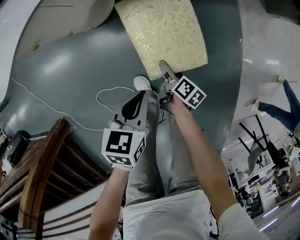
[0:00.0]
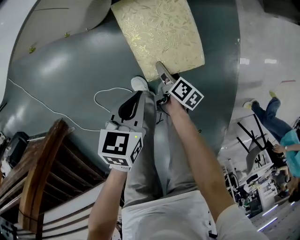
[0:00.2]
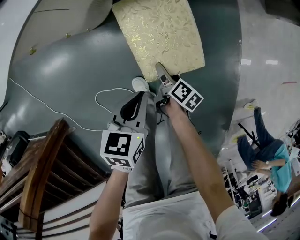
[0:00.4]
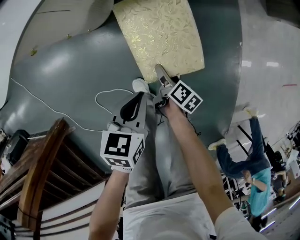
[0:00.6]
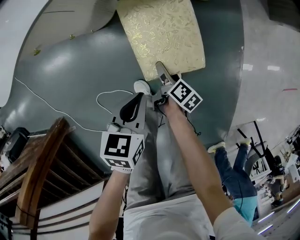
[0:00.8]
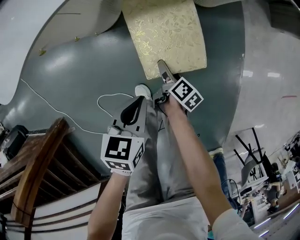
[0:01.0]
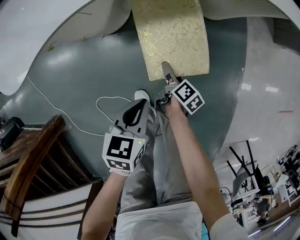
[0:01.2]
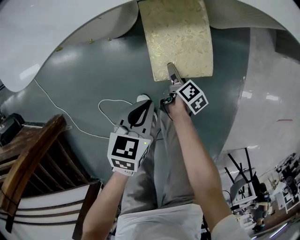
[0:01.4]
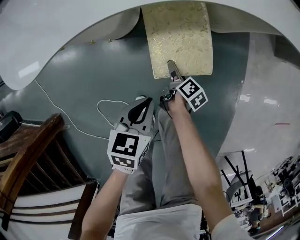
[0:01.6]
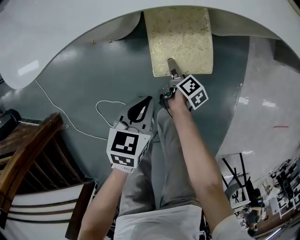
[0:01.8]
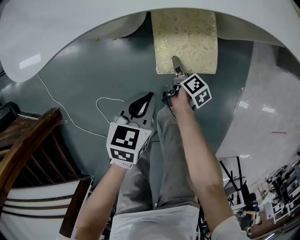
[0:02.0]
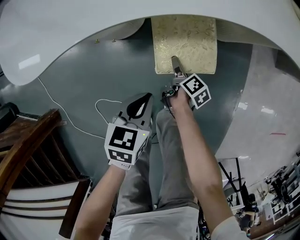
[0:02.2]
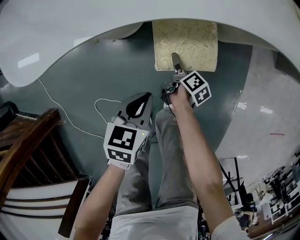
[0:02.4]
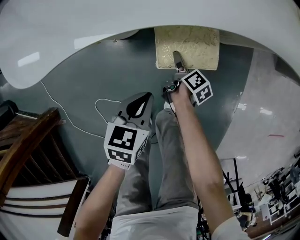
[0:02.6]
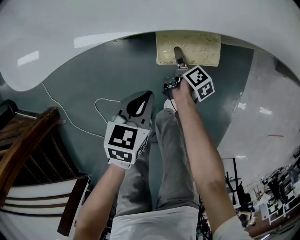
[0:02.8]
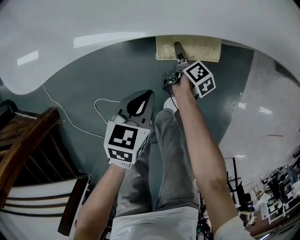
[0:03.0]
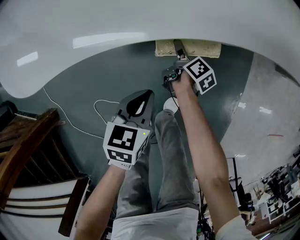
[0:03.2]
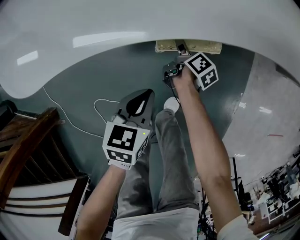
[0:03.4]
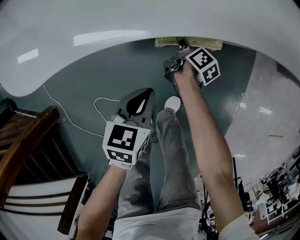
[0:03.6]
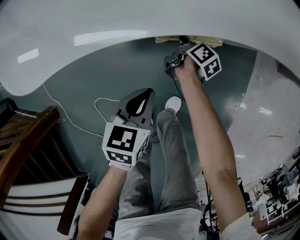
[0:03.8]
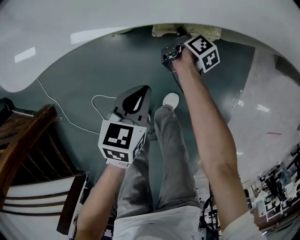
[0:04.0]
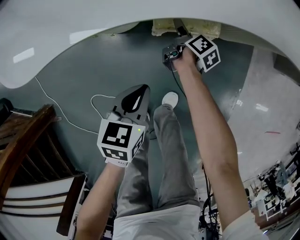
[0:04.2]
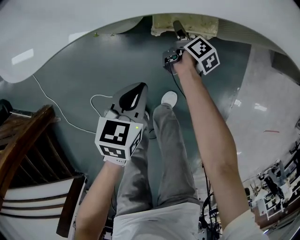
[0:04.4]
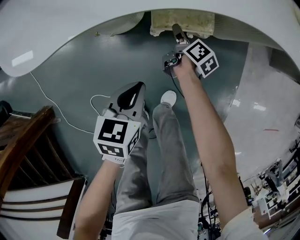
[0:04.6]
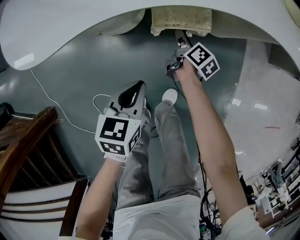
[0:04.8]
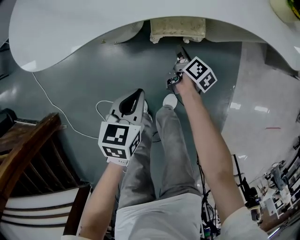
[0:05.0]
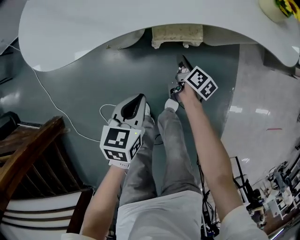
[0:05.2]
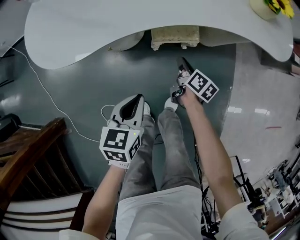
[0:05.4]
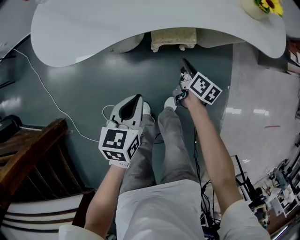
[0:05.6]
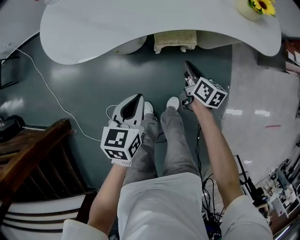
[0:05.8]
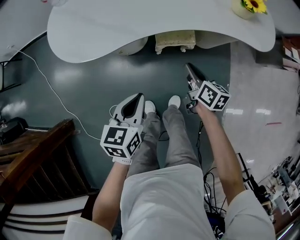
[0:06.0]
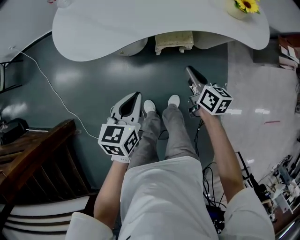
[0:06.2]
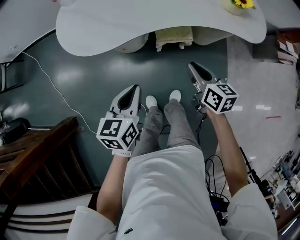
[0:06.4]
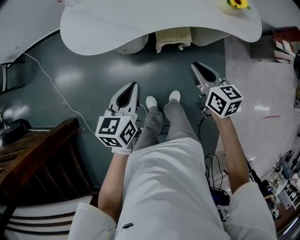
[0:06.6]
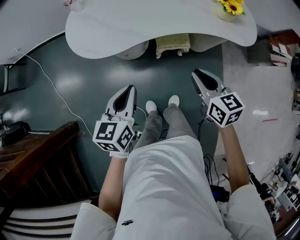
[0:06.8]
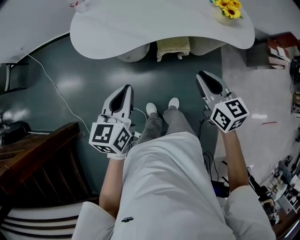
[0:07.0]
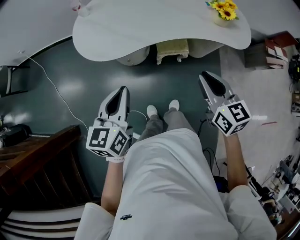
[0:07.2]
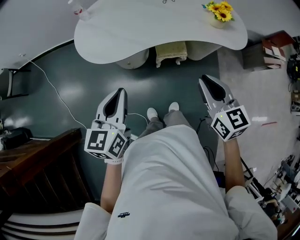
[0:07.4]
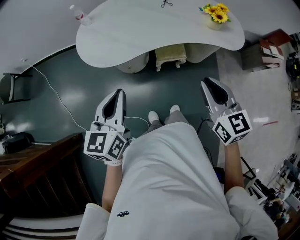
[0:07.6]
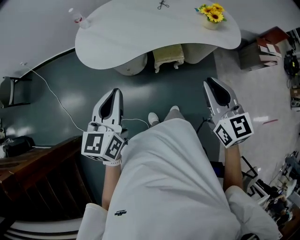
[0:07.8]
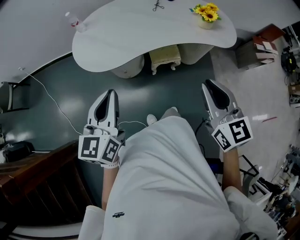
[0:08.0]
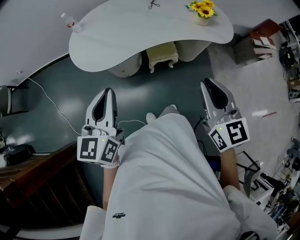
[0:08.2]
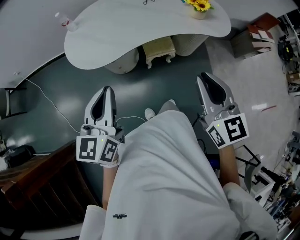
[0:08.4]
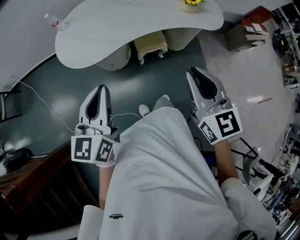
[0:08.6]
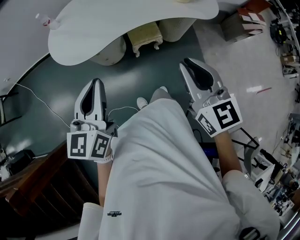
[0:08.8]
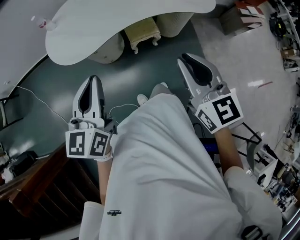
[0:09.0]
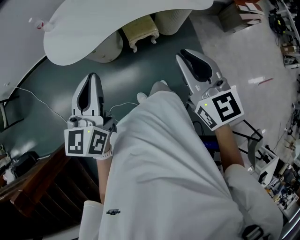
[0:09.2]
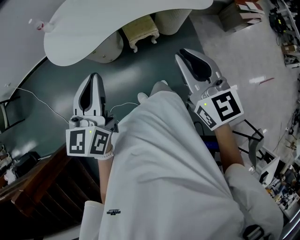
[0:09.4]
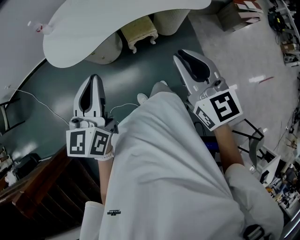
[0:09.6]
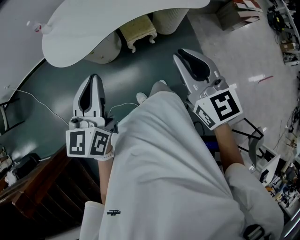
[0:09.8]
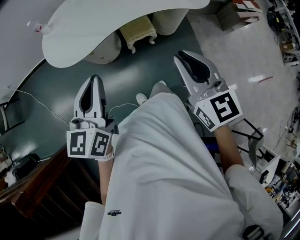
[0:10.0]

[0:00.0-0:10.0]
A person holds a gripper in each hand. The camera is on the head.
0:00.0 to 0:01.4: The right gripper is displaced forward by about 10 cm; the left gripper goes some 5 cm forward.
0:01.4 to 0:02.8: The right gripper shifts some 10 cm forward, while the left gripper goes about 5 cm forward.
0:02.8 to 0:04.2: The right gripper goes approximately 10 cm forward.
0:04.2 to 0:05.8: The right gripper goes about 30 cm upward and backward, swivels roughly 30 degrees, and closes, while the left gripper moves upward, roughly 20 cm.
0:05.8 to 0:07.2: Both grippers move upward, about 30 cm. The right gripper swivels some 40 degrees.
0:07.2 to 0:08.6: The right gripper shifts about 10 cm upward and backward; the left gripper heads upward, covering approximately 10 cm.
0:08.6 to 0:10.0: The left gripper is displaced to the right by roughly 5 cm.

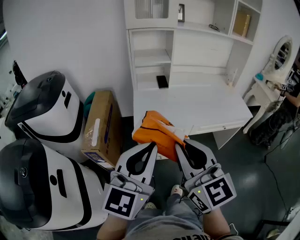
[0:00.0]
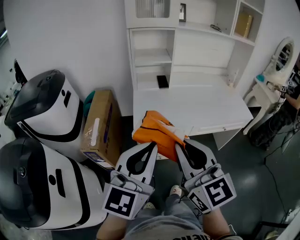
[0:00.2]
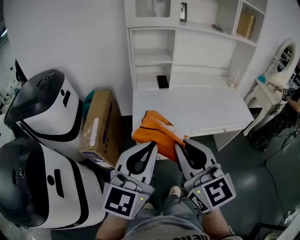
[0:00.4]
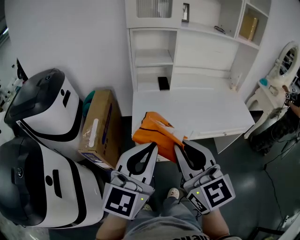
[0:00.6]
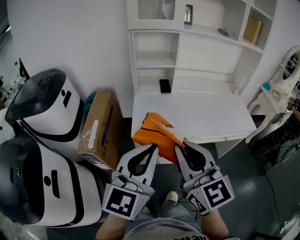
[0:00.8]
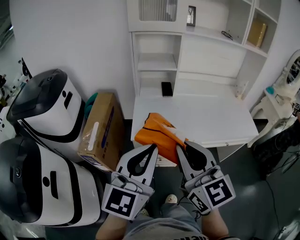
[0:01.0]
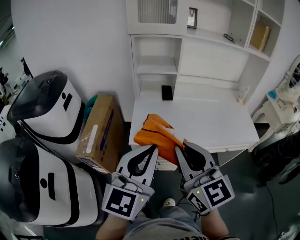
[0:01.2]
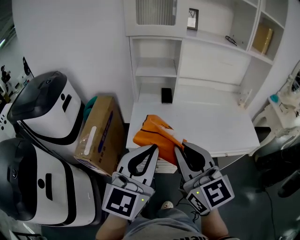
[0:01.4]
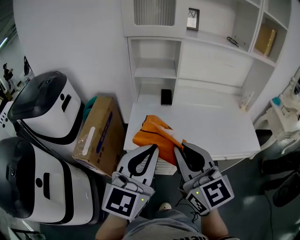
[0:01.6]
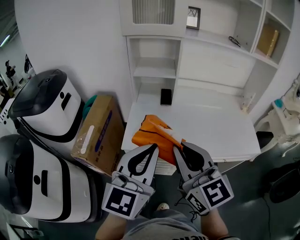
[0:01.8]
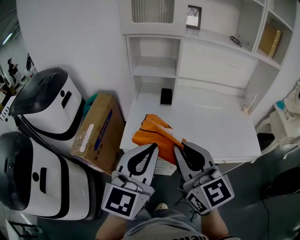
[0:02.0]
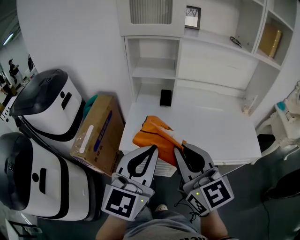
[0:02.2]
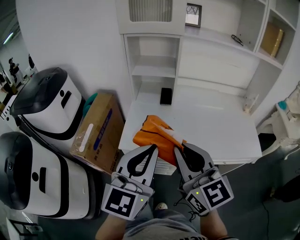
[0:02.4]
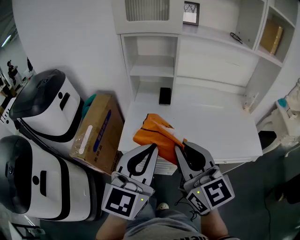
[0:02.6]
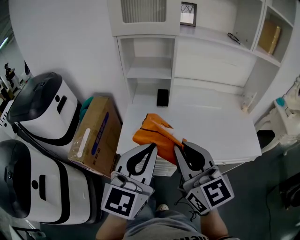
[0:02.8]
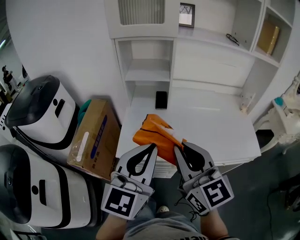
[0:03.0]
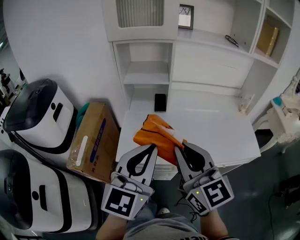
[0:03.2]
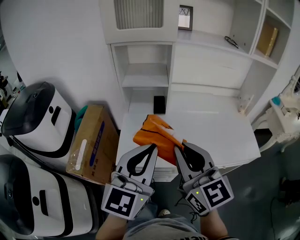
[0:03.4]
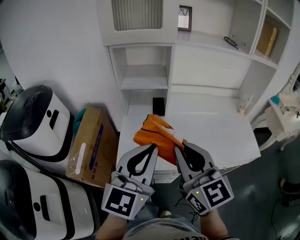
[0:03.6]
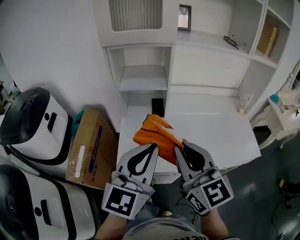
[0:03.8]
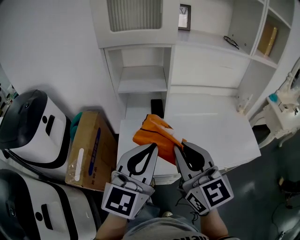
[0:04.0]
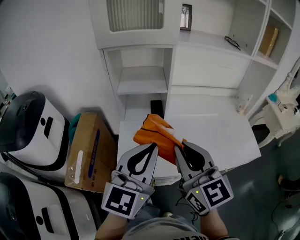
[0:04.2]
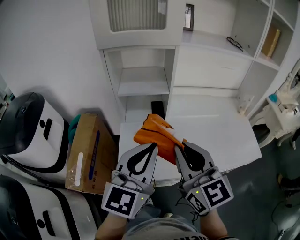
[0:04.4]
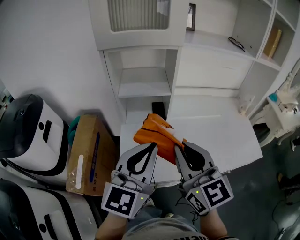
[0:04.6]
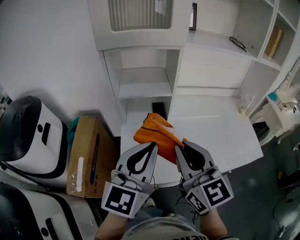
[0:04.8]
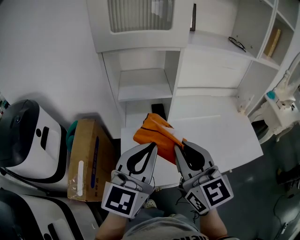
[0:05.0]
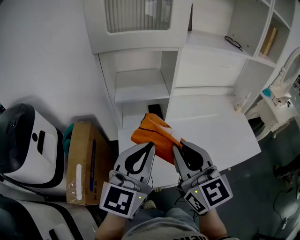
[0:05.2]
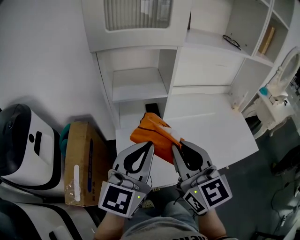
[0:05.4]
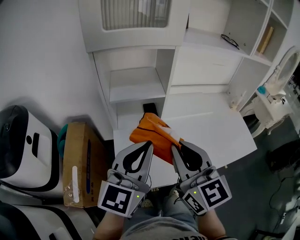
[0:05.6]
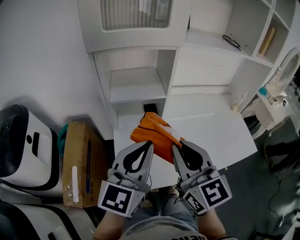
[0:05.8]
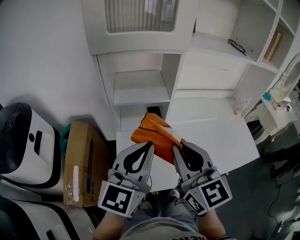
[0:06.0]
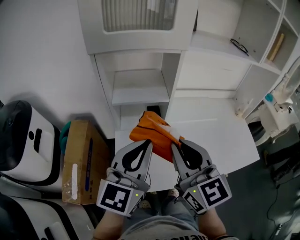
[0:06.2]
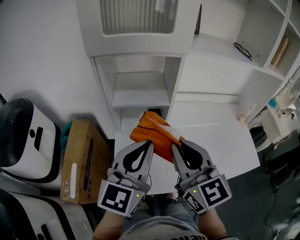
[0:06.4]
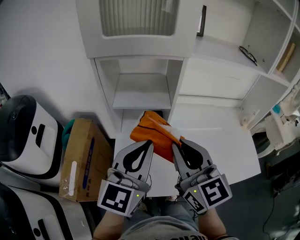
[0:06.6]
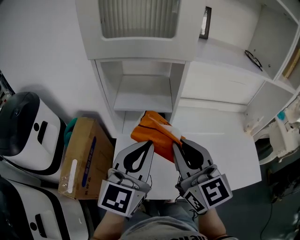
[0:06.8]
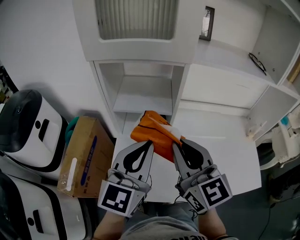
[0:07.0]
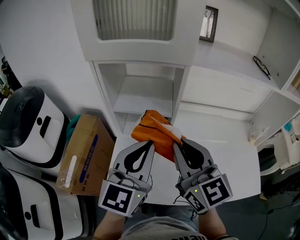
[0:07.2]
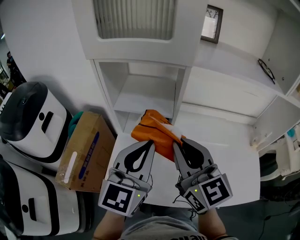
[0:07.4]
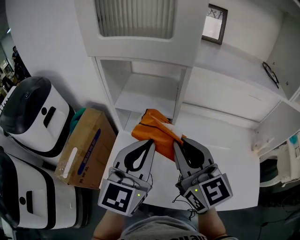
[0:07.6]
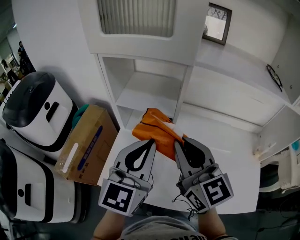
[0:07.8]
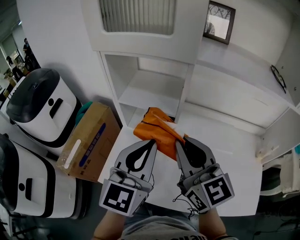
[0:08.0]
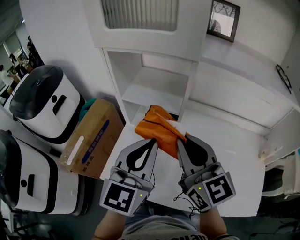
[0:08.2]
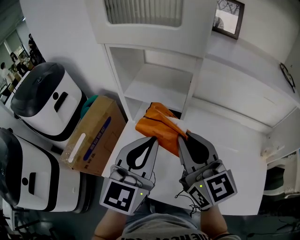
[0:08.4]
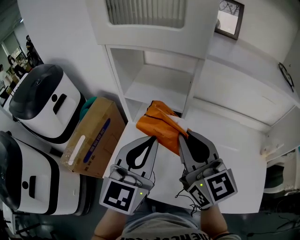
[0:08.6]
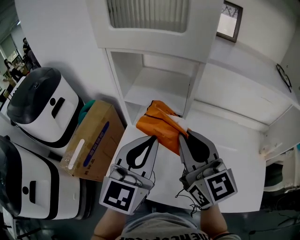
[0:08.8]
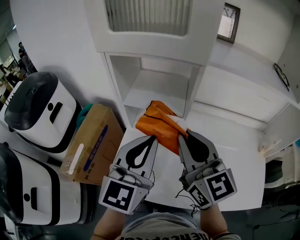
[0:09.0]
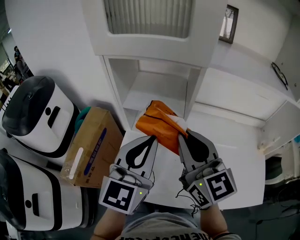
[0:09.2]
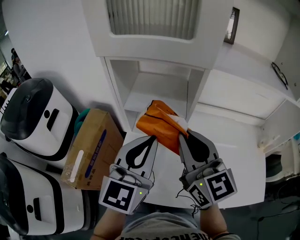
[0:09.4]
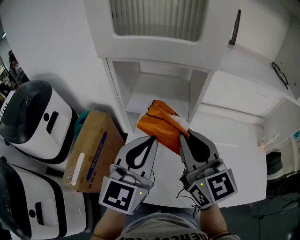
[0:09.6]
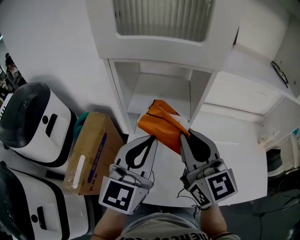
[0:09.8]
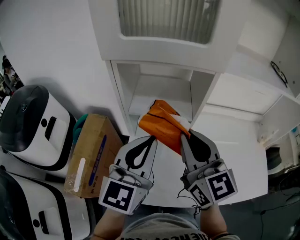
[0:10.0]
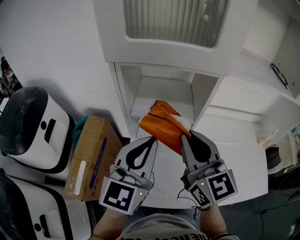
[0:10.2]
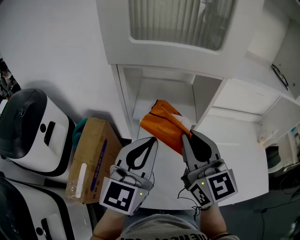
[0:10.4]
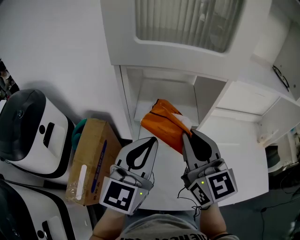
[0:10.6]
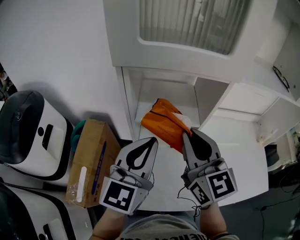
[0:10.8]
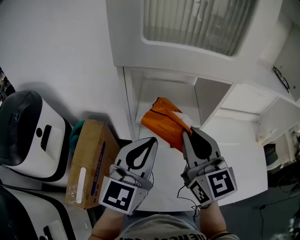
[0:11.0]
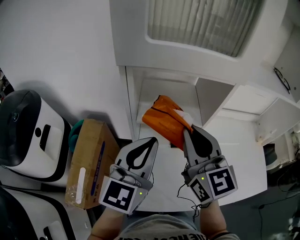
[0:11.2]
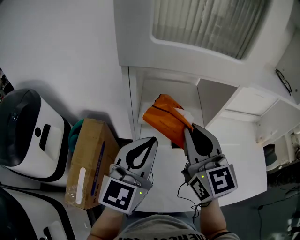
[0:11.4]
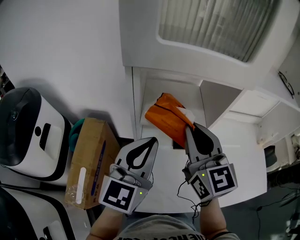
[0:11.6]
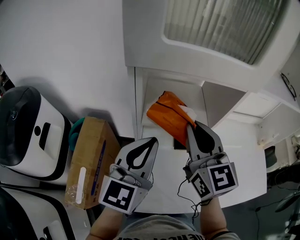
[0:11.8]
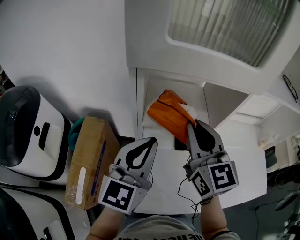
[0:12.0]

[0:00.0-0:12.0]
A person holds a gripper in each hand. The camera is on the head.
0:00.0 to 0:01.6: The grippers both shift forward and to the right by about 20 cm.
0:01.6 to 0:03.0: Both grippers travel together forward, approximately 5 cm.
0:03.0 to 0:04.4: Both grippers move forward, about 10 cm.
0:04.4 to 0:06.0: Both grippers travel together forward, approximately 5 cm.
0:06.0 to 0:07.6: The grippers both shift forward and to the right by about 10 cm. The left gripper turns by approximately 20 degrees; the right gripper changes its angle by some 20 degrees.
0:07.6 to 0:09.0: The grippers make only small movements.
0:09.0 to 0:10.4: Both grippers travel together to the left, some 5 cm.
0:10.4 to 0:12.0: The right gripper shifts about 5 cm forward. Meanwhile the left gripper travels to the left by about 5 cm.

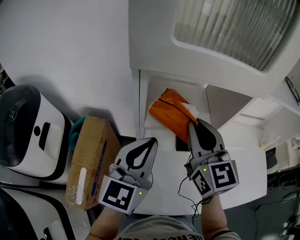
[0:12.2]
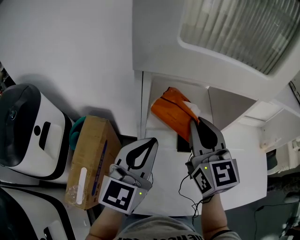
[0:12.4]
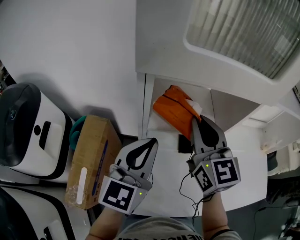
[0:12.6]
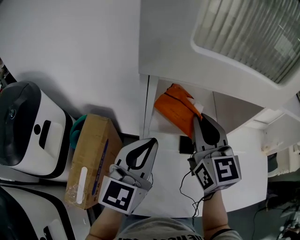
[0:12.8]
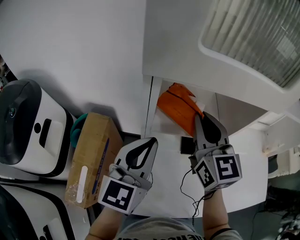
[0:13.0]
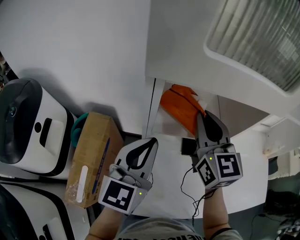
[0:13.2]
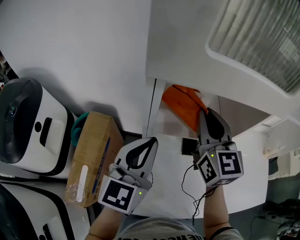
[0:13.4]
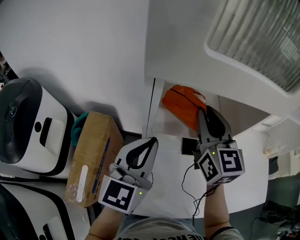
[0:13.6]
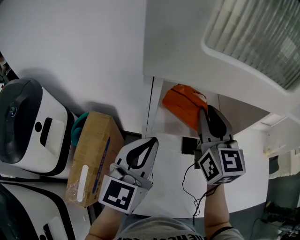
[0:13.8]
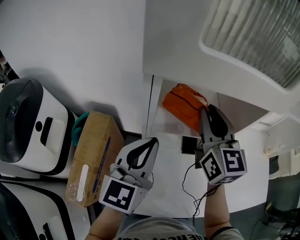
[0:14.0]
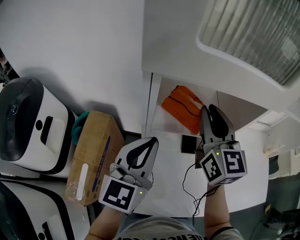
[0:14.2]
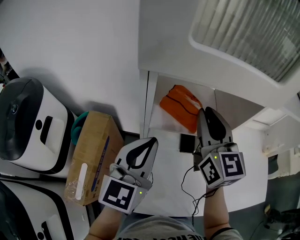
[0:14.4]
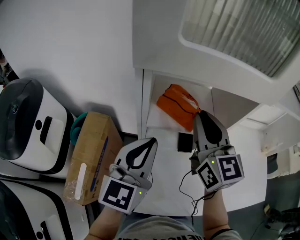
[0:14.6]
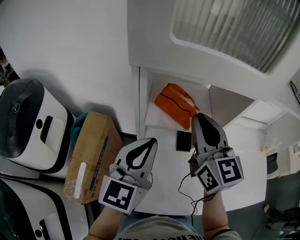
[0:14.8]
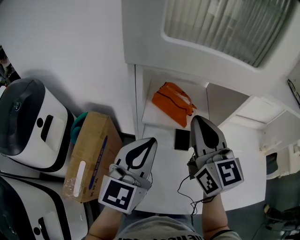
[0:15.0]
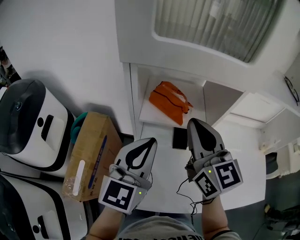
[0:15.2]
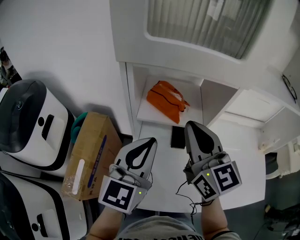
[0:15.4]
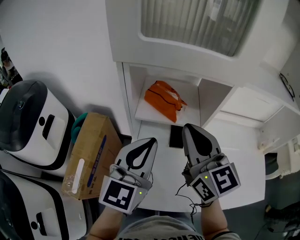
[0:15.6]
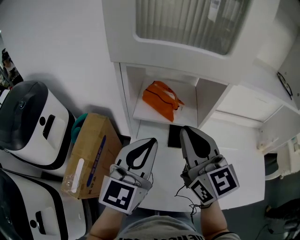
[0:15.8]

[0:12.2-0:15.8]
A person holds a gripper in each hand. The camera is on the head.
0:12.2 to 0:14.0: The right gripper is displaced forward by about 5 cm.
0:14.0 to 0:15.8: The right gripper travels backward by approximately 15 cm, and closes. Meanwhile the left gripper is displaced to the right and backward by roughly 10 cm.
